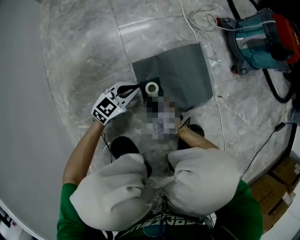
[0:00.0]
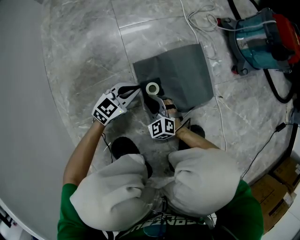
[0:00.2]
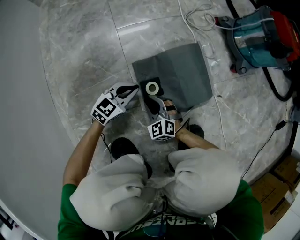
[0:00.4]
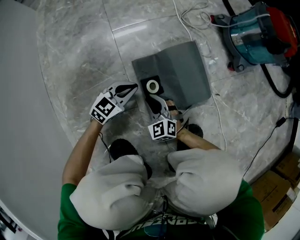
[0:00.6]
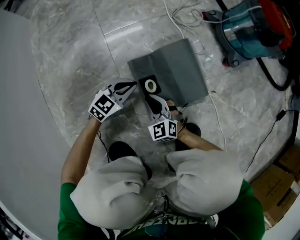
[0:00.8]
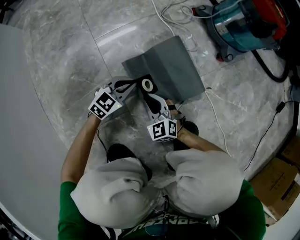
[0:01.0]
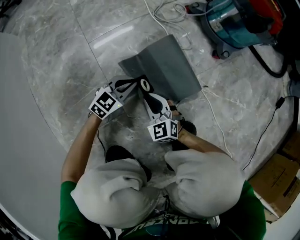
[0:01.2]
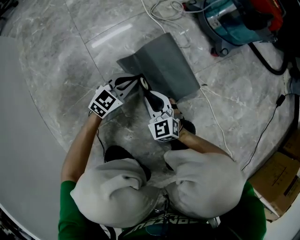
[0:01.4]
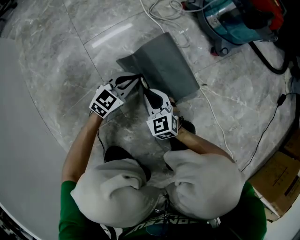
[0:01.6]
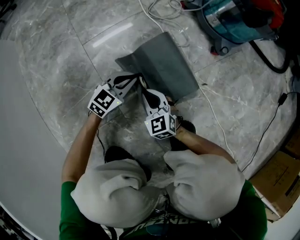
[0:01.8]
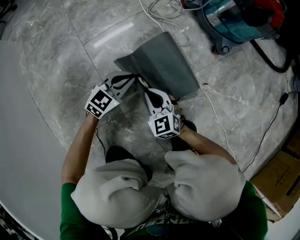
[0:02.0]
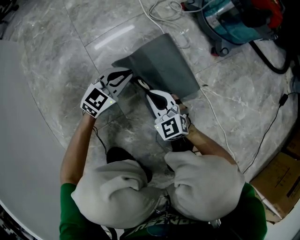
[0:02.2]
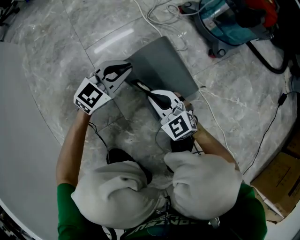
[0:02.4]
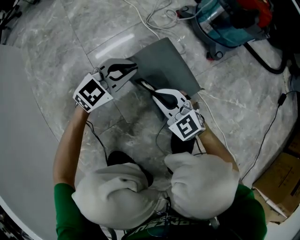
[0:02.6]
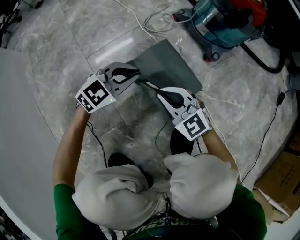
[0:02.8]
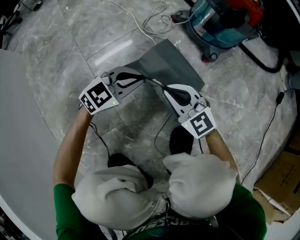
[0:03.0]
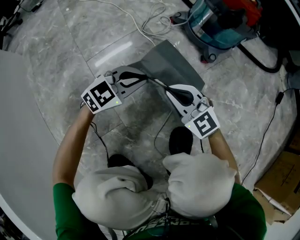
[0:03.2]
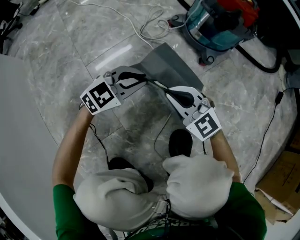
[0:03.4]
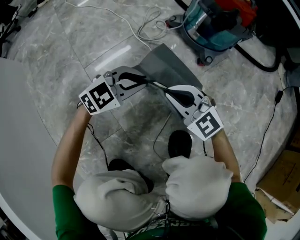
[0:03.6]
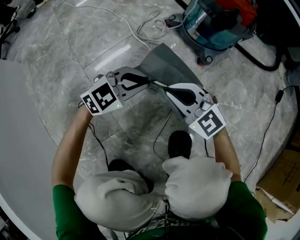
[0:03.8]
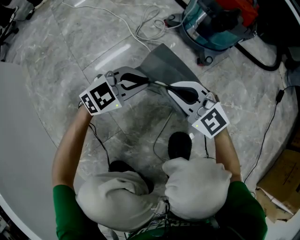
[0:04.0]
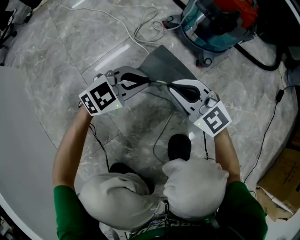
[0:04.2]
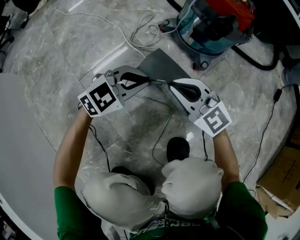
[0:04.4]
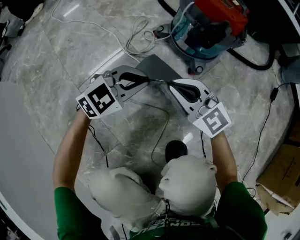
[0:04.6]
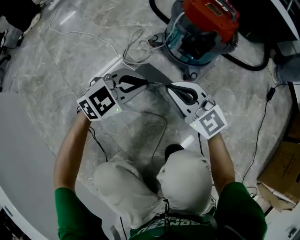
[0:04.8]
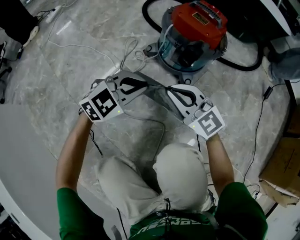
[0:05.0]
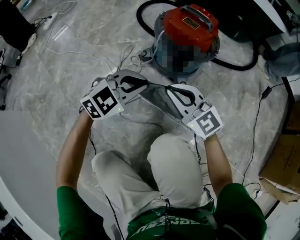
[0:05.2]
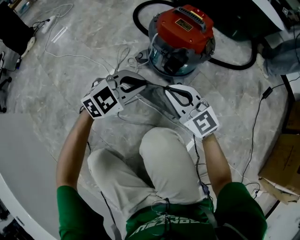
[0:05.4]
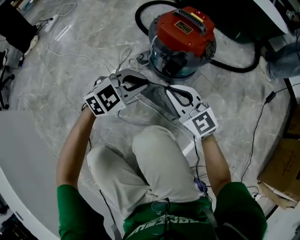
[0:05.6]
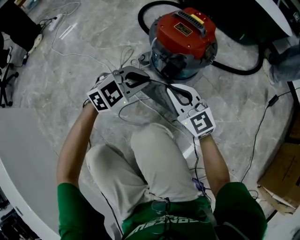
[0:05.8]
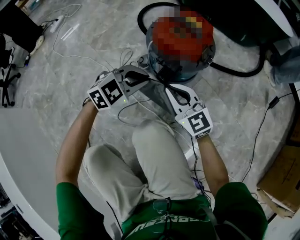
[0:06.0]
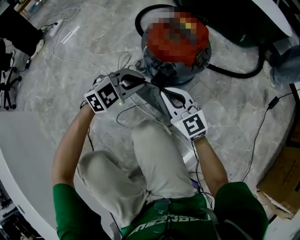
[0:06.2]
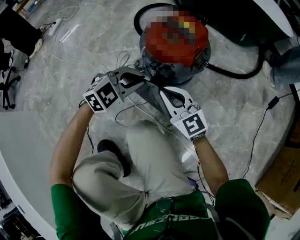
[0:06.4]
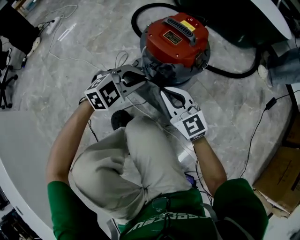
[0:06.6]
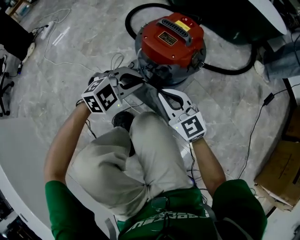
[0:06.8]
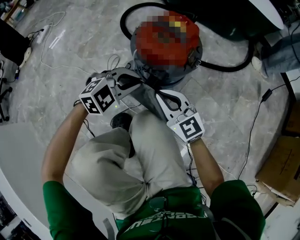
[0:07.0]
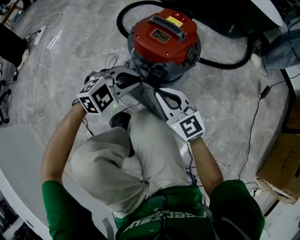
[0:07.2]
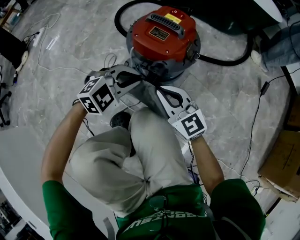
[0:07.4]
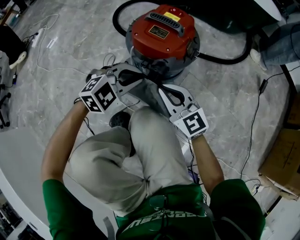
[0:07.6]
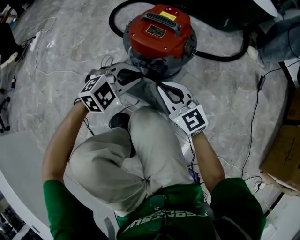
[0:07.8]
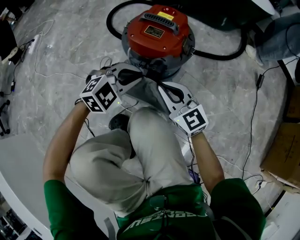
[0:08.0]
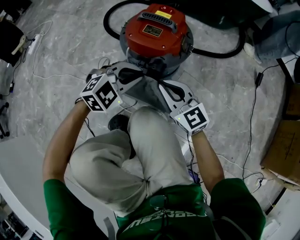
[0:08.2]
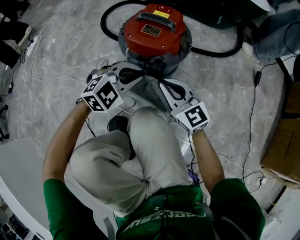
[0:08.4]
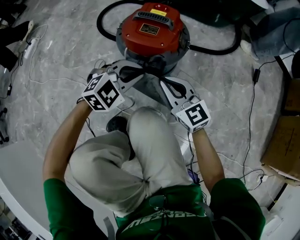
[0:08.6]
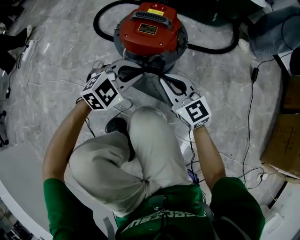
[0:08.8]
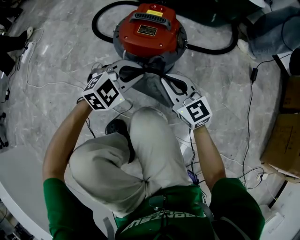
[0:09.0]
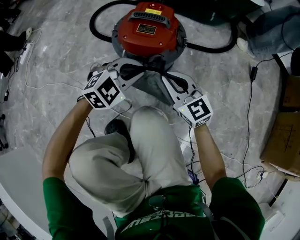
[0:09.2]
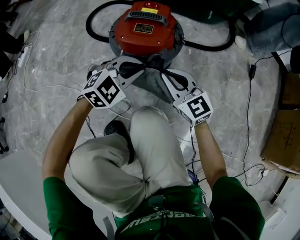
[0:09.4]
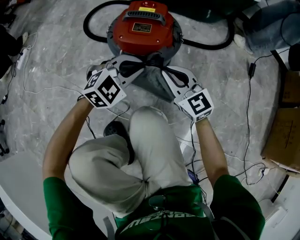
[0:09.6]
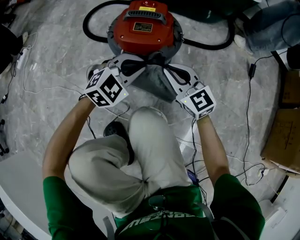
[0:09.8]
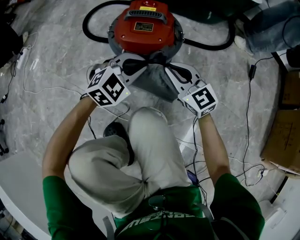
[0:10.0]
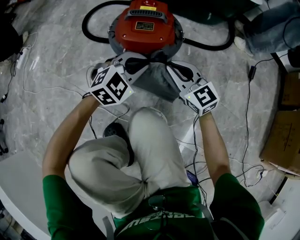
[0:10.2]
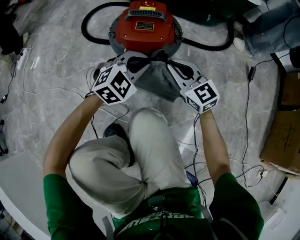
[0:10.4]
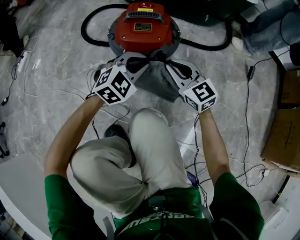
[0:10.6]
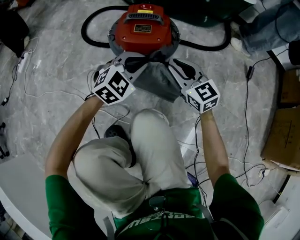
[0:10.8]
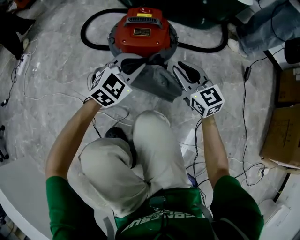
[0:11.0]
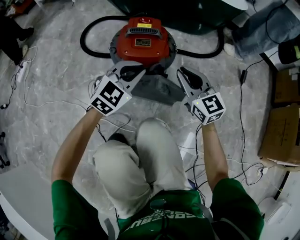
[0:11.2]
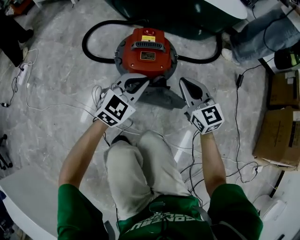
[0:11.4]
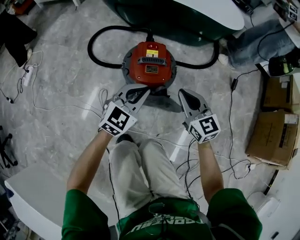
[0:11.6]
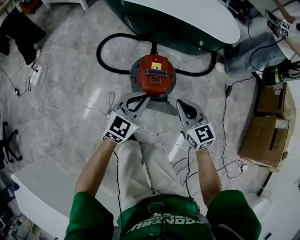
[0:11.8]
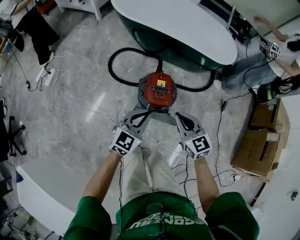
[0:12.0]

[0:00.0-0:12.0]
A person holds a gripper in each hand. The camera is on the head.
0:00.0 to 0:01.6: The right gripper moves forward, to the right and upward, some 15 cm, and swivels about 30 degrees; the left gripper heads to the right and forward, covering about 15 cm.
0:01.6 to 0:03.0: The two grippers go some 15 cm upward. The right gripper turns by some 20 degrees.
0:03.0 to 0:04.4: The right gripper shifts by approximately 10 cm. The left gripper moves about 10 cm.
0:04.4 to 0:06.0: The two grippers go approximately 20 cm forward, upward and to the right. The right gripper swivels roughly 20 degrees.
0:06.0 to 0:07.6: The left gripper moves approximately 5 cm.
0:07.6 to 0:09.0: The left gripper moves about 5 cm; the right gripper heads forward, covering approximately 5 cm.
0:09.0 to 0:10.4: The two grippers go roughly 5 cm forward.
0:10.4 to 0:12.0: The two grippers go about 40 cm upward. The left gripper swivels approximately 40 degrees.

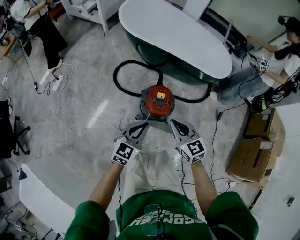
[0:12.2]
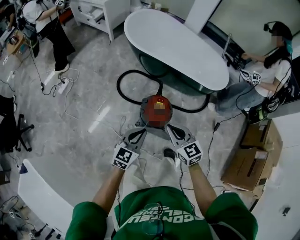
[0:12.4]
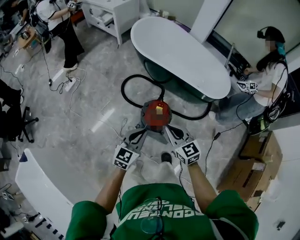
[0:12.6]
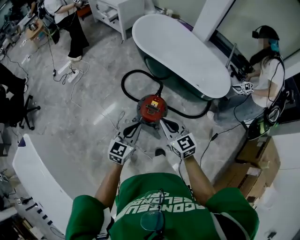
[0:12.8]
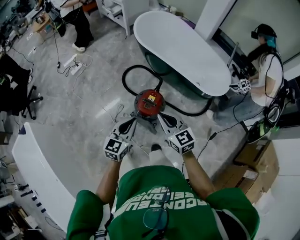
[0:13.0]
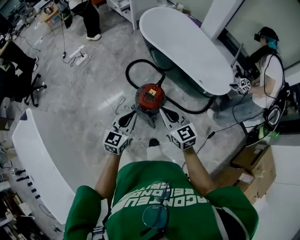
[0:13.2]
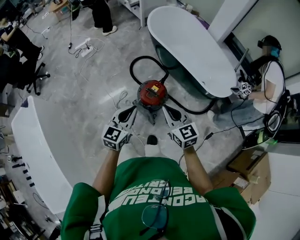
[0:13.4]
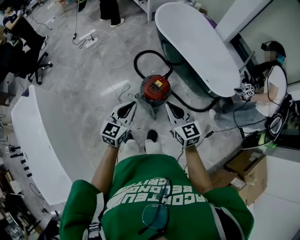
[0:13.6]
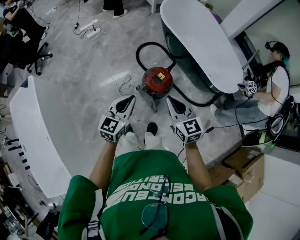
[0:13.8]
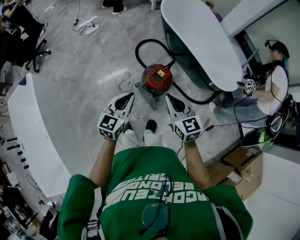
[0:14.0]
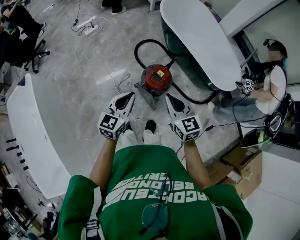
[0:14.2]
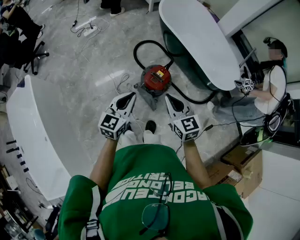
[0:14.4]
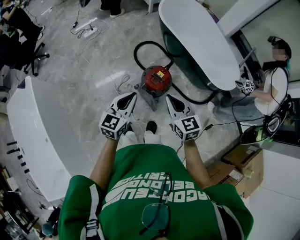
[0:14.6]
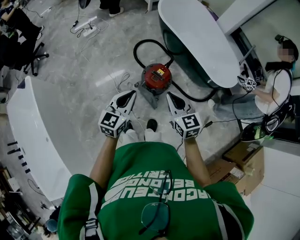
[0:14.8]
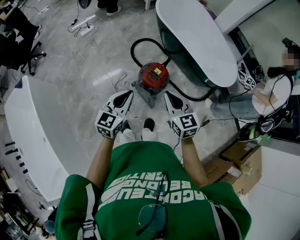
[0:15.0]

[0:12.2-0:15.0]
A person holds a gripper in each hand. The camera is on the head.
0:12.2 to 0:13.6: The grippers both shift upward by some 15 cm. The right gripper swivels approximately 30 degrees. Meanwhile the left gripper turns by approximately 40 degrees.
0:13.6 to 0:15.0: The grippers move only a little.

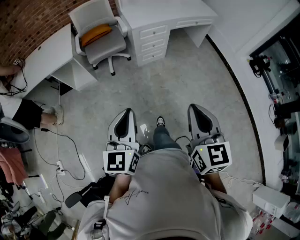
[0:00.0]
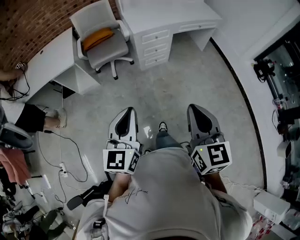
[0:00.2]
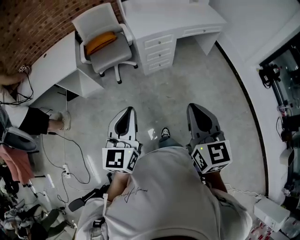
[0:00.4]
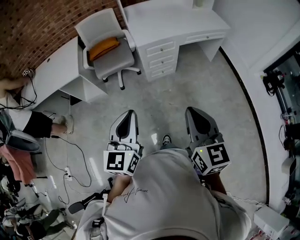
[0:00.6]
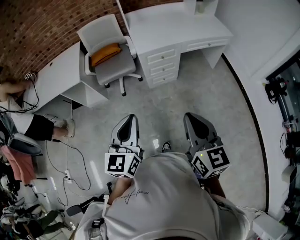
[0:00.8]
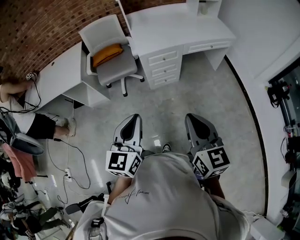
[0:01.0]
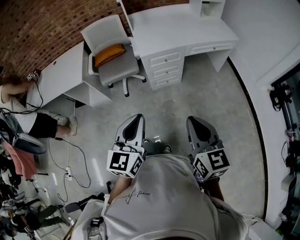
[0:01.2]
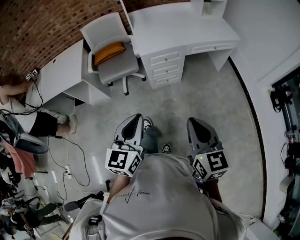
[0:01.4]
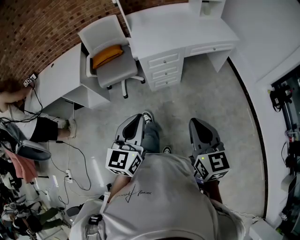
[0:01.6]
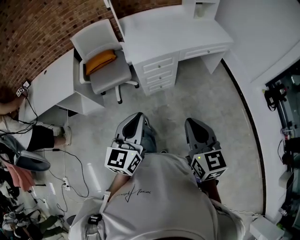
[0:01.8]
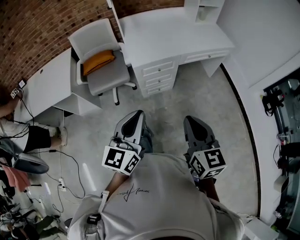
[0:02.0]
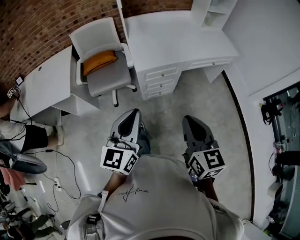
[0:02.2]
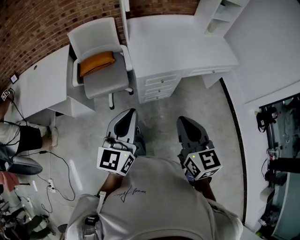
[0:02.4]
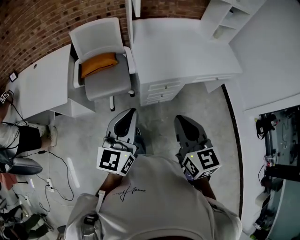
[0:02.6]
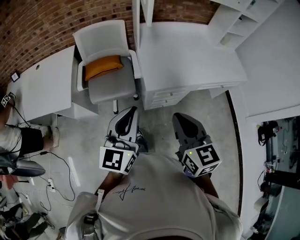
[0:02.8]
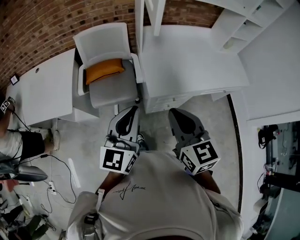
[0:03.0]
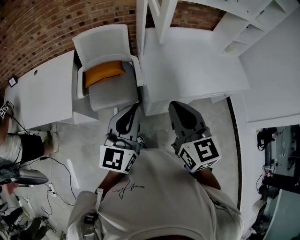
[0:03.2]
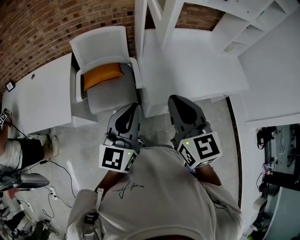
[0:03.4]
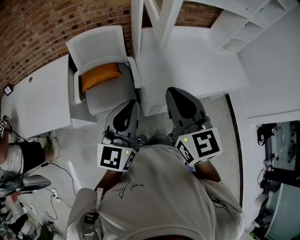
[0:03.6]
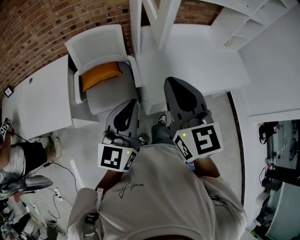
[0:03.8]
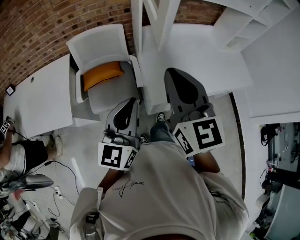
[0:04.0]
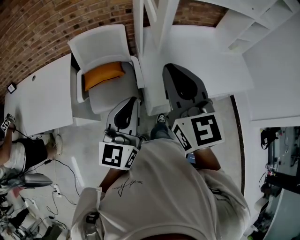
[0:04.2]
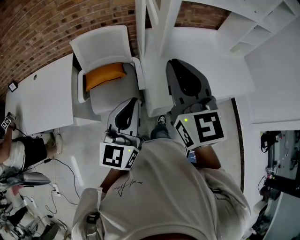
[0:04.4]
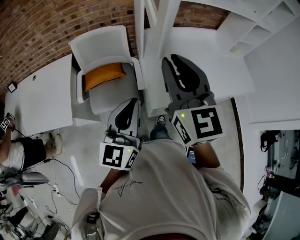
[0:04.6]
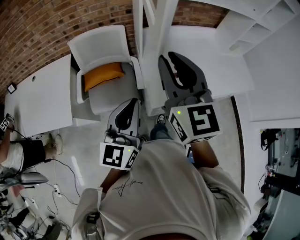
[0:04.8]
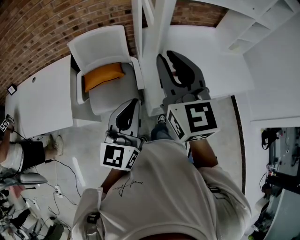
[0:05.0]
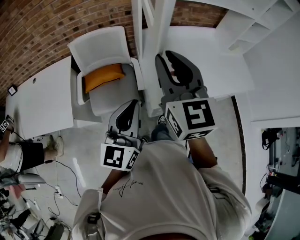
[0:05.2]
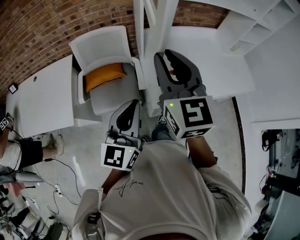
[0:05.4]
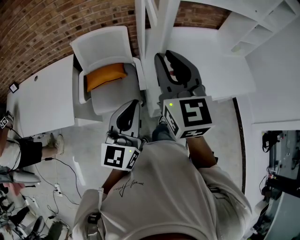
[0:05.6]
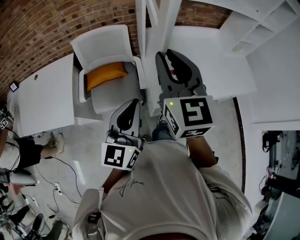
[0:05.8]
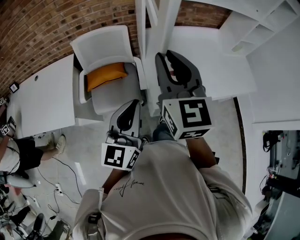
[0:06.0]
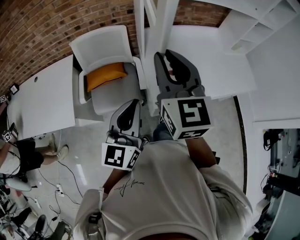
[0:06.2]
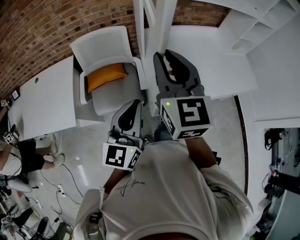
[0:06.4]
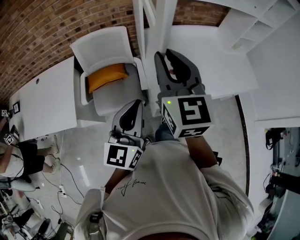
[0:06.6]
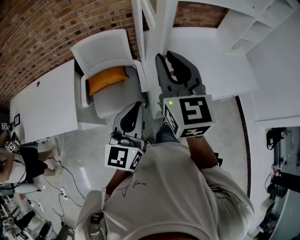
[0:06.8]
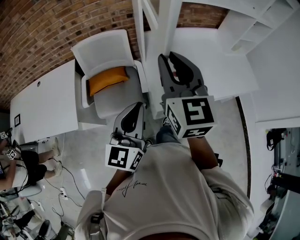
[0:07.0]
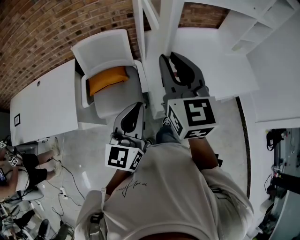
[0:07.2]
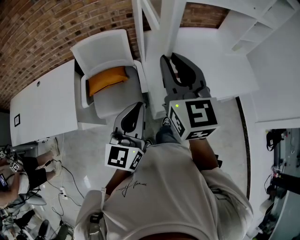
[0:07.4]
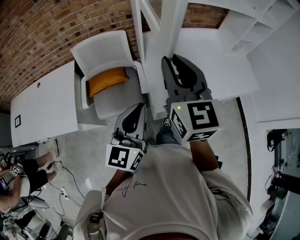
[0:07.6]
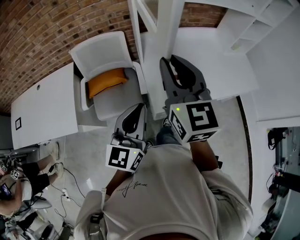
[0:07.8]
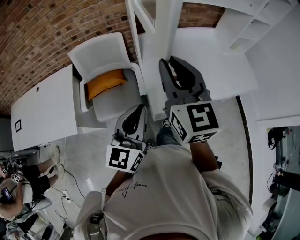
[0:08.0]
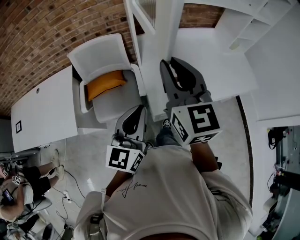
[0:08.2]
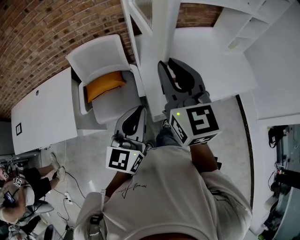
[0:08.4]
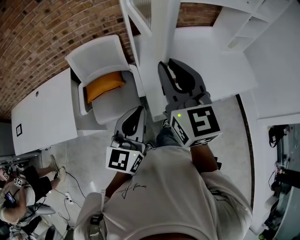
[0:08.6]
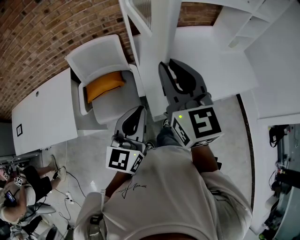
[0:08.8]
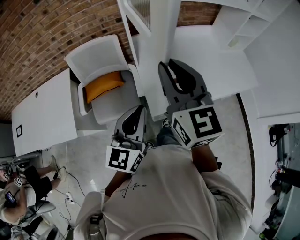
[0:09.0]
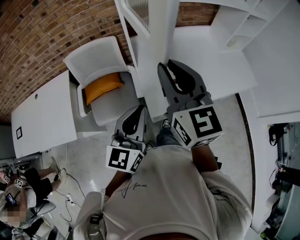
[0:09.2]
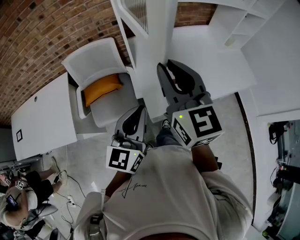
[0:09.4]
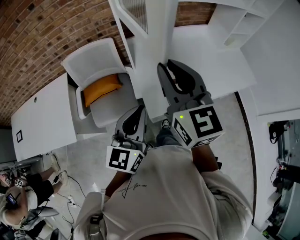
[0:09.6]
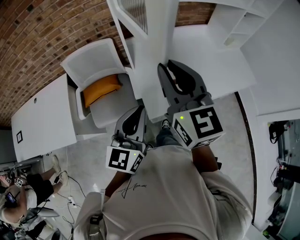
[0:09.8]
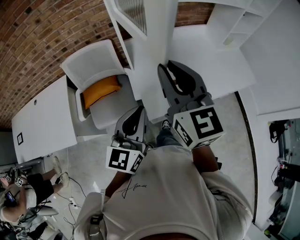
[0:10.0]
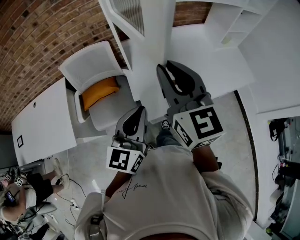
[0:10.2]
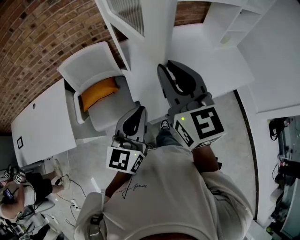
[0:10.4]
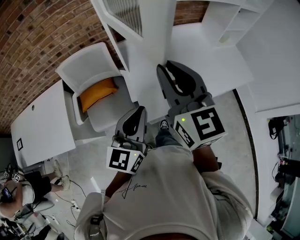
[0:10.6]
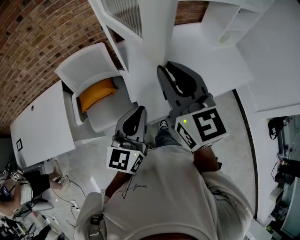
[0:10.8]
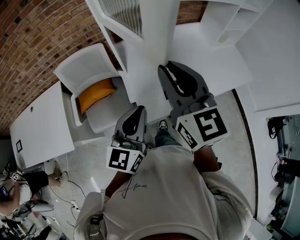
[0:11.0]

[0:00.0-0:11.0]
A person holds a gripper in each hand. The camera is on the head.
0:00.0 to 0:01.6: Both grippers move forward and to the right, approximately 30 cm.
0:01.6 to 0:03.2: The pair of grippers is taken forward and to the left, approximately 50 cm.
0:03.2 to 0:04.8: The right gripper goes some 20 cm forward and upward. The left gripper shifts about 10 cm forward.
0:04.8 to 0:07.8: The grippers move only a little.
0:07.8 to 0:09.4: The grippers move only a little.
0:09.4 to 0:11.0: The right gripper changes place by about 5 cm. Meanwhile the left gripper shifts by about 5 cm.
